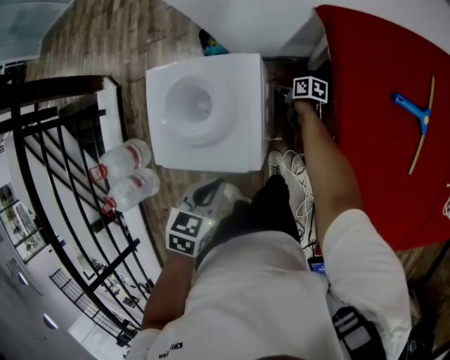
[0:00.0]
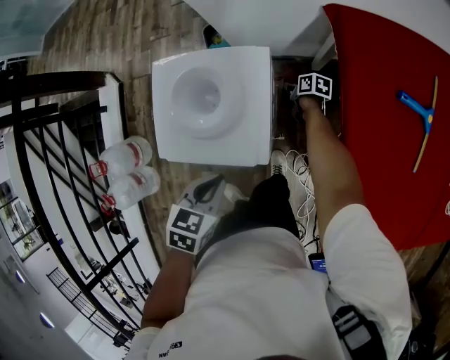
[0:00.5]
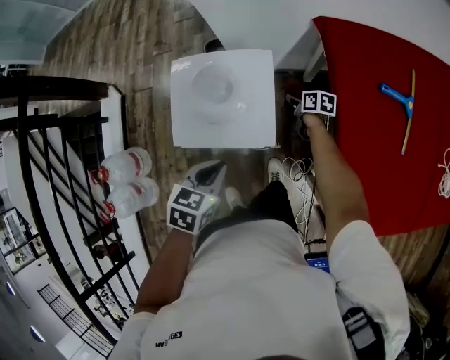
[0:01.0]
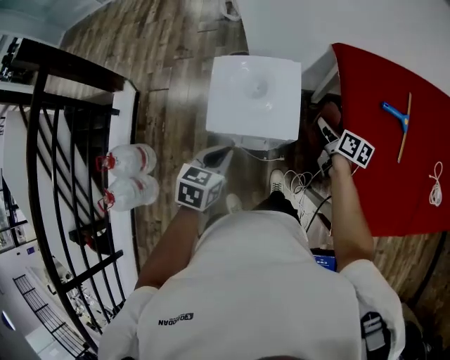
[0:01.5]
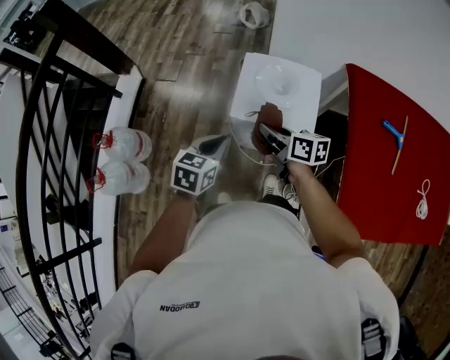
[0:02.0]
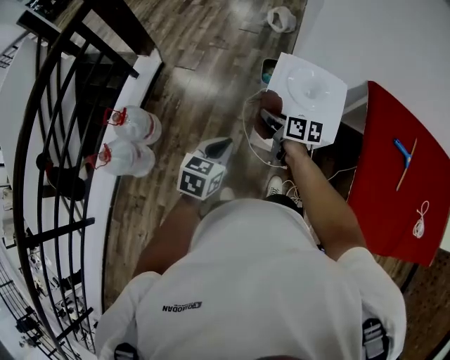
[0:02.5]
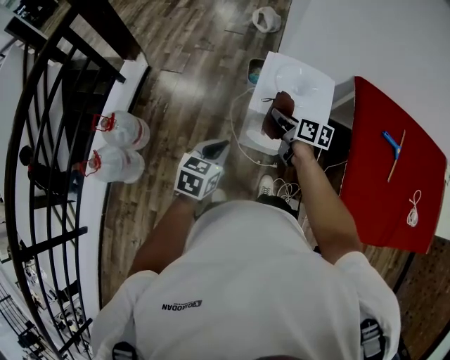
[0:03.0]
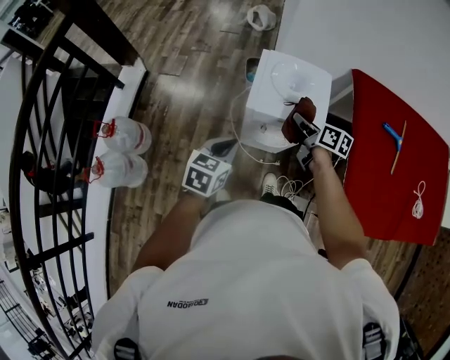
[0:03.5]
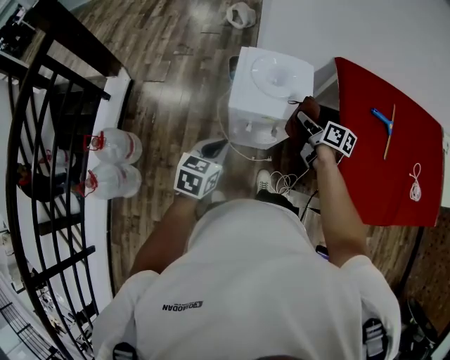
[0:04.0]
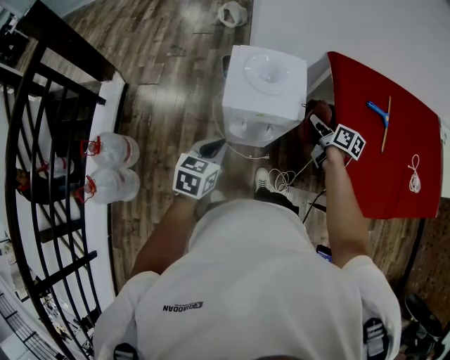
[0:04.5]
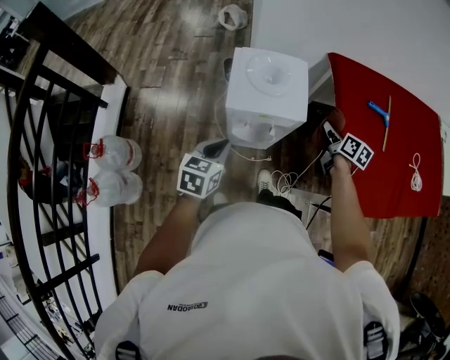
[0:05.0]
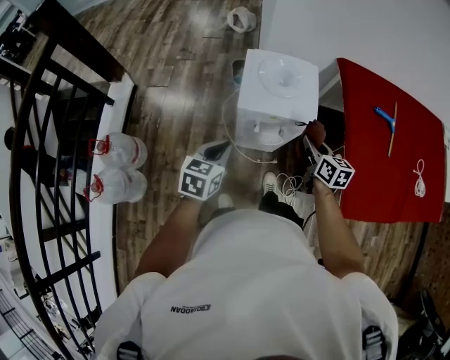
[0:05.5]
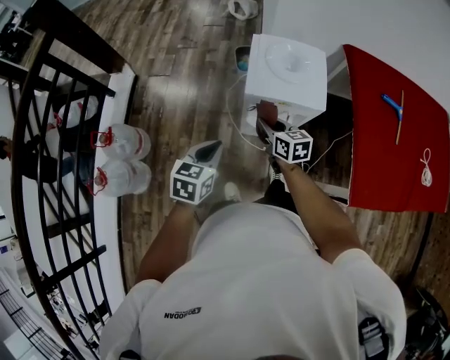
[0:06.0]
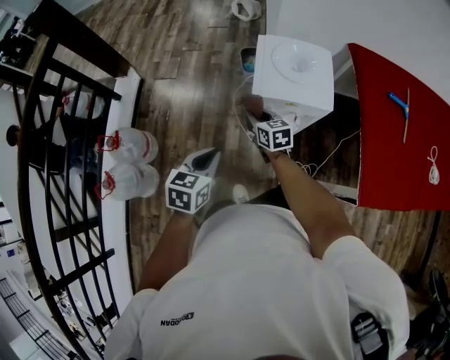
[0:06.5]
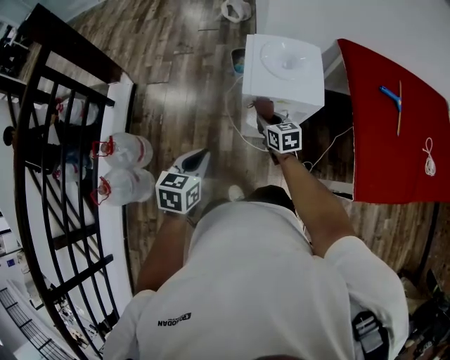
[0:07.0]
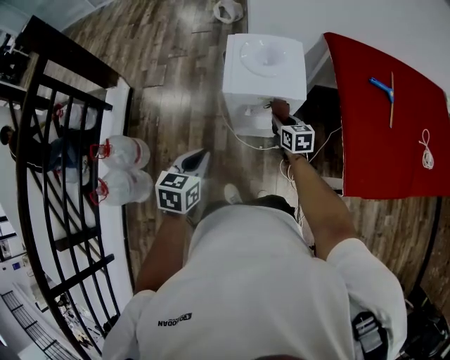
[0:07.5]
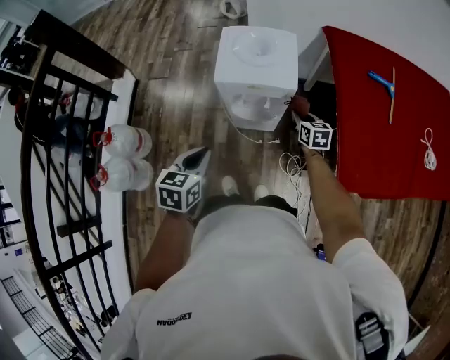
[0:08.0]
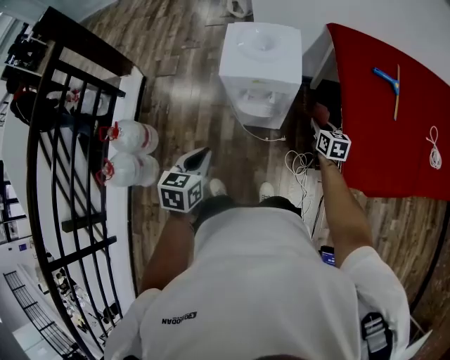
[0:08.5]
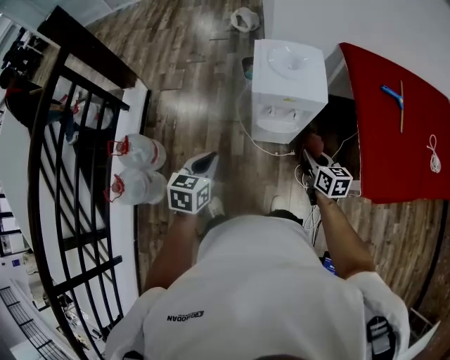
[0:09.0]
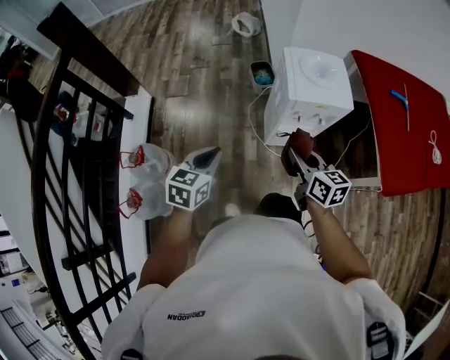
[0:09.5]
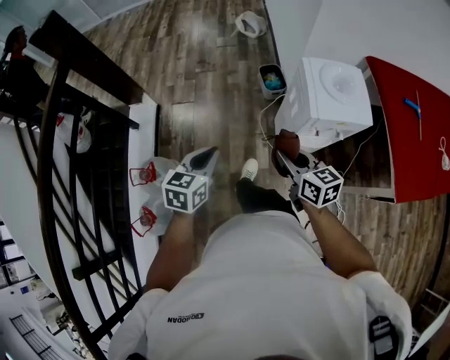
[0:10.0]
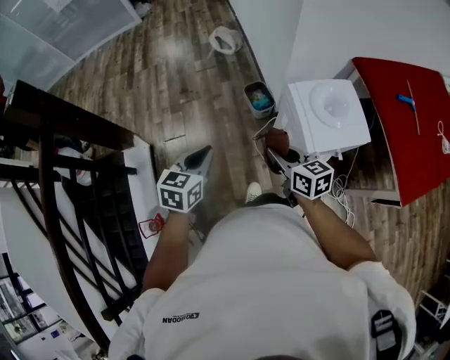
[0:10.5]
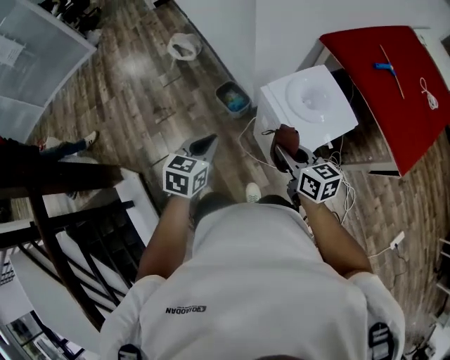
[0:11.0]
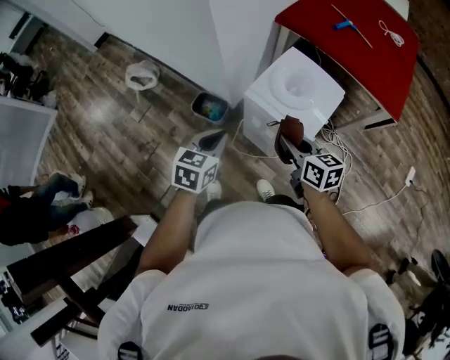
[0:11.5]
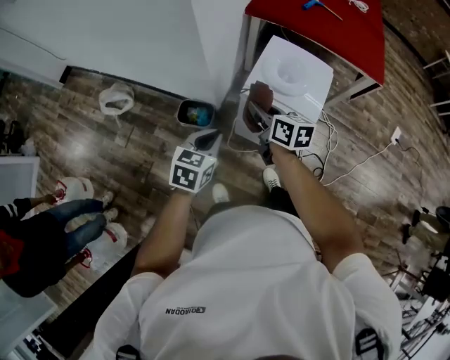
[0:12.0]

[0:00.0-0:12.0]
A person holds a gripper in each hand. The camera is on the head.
0:00.0 to 0:02.0: The right gripper shifts approximately 50 cm upward, to the left and backward, and turns by roughly 30 degrees. Meanwhile the left gripper shifts approximately 20 cm to the left and upward, and changes its angle by approximately 20 degrees.
0:02.0 to 0:04.0: The right gripper goes about 15 cm to the right, and swivels some 20 degrees.
0:04.0 to 0:06.0: The left gripper travels to the left by some 5 cm. Meanwhile the right gripper is displaced to the left and backward by roughly 20 cm, and changes its angle by approximately 30 degrees.
0:06.0 to 0:08.0: The right gripper goes roughly 25 cm to the right; the left gripper is displaced backward and to the right by roughly 10 cm.
0:08.0 to 0:10.0: Both grippers travel together to the left, roughly 40 cm.
0:10.0 to 0:12.0: The right gripper shifts by about 35 cm, and rotates about 70 degrees, while the left gripper moves about 40 cm, and changes its angle by roughly 70 degrees.

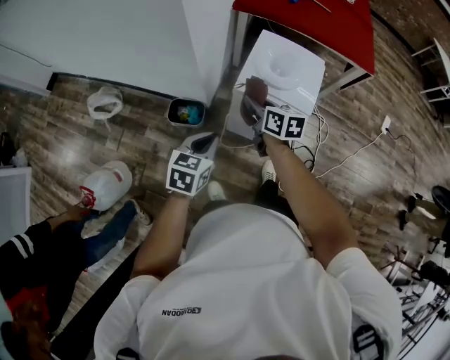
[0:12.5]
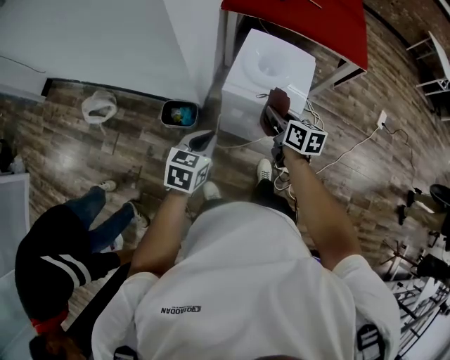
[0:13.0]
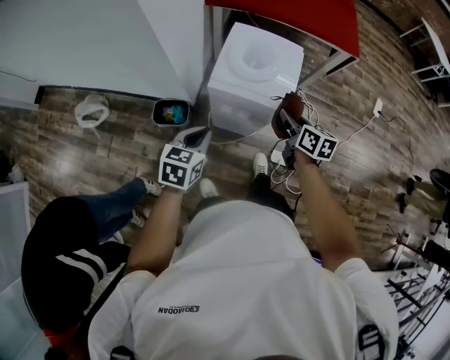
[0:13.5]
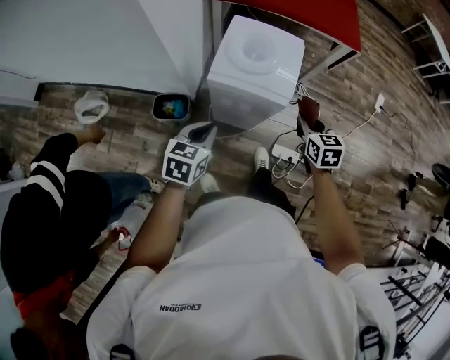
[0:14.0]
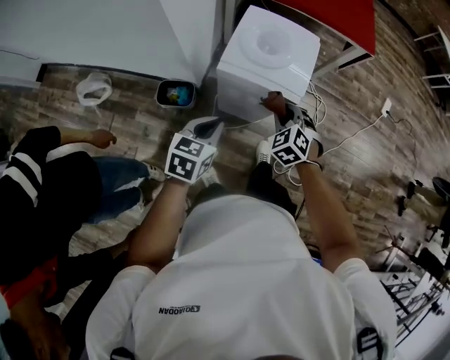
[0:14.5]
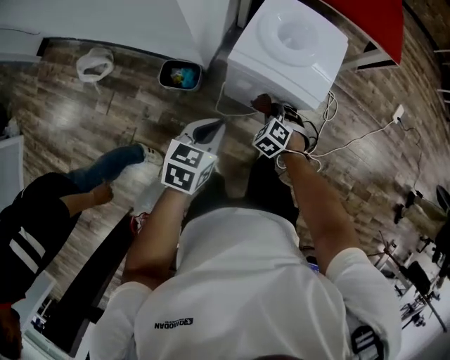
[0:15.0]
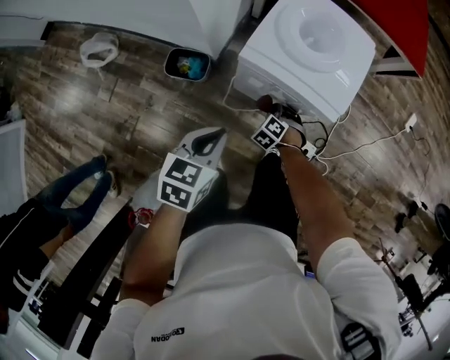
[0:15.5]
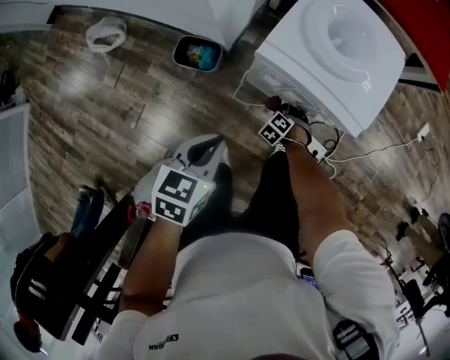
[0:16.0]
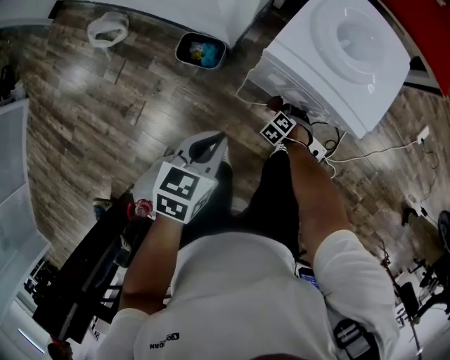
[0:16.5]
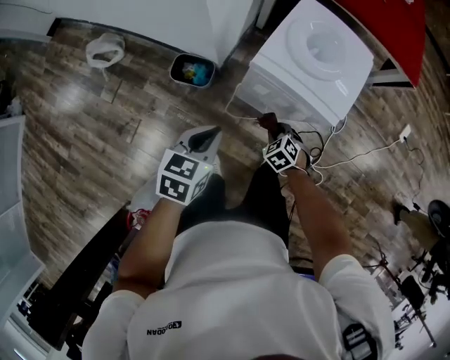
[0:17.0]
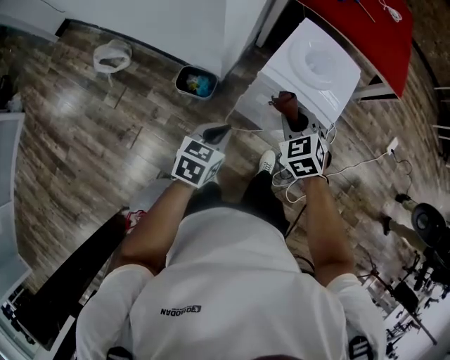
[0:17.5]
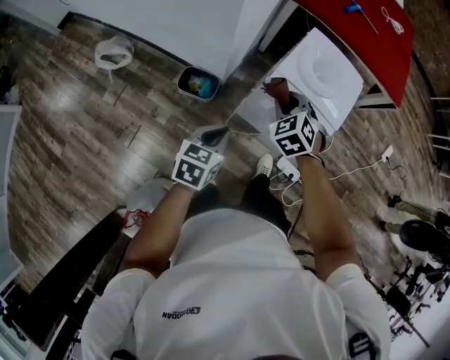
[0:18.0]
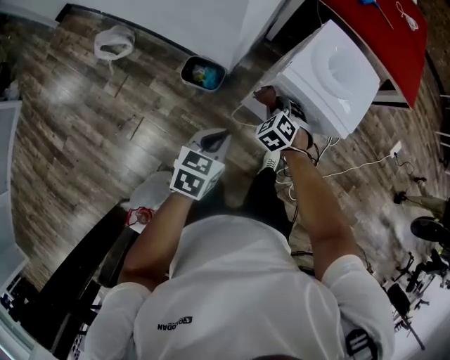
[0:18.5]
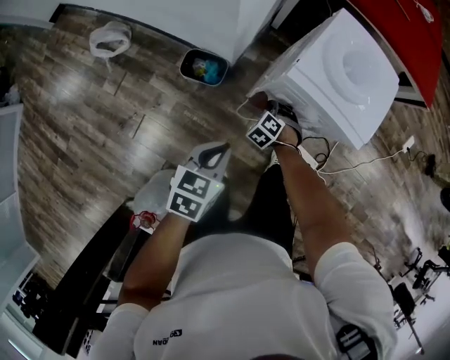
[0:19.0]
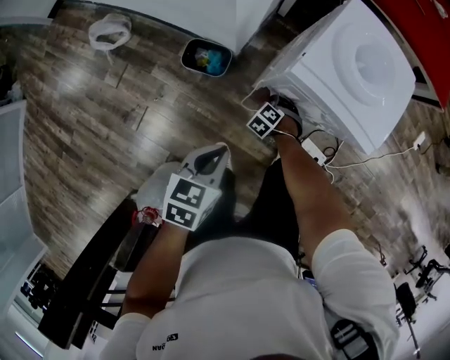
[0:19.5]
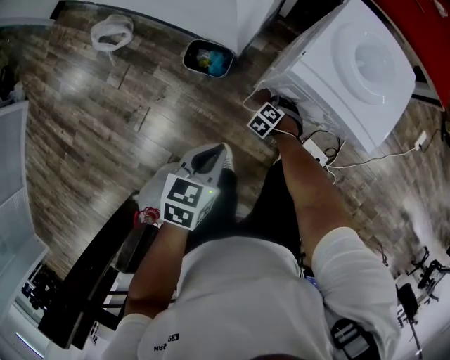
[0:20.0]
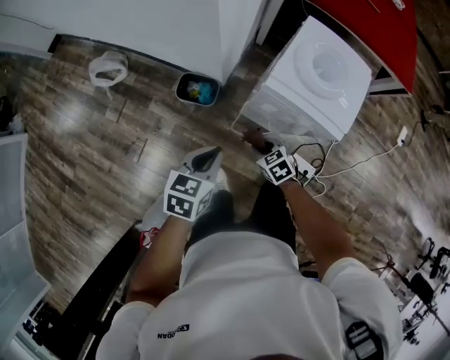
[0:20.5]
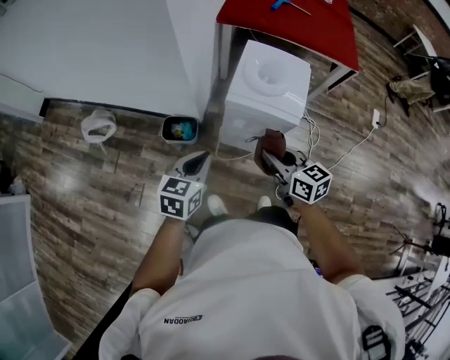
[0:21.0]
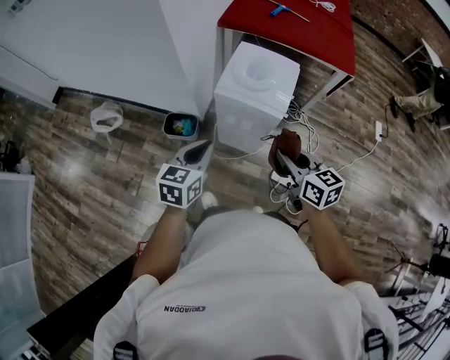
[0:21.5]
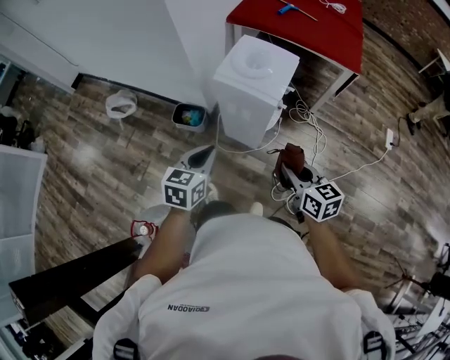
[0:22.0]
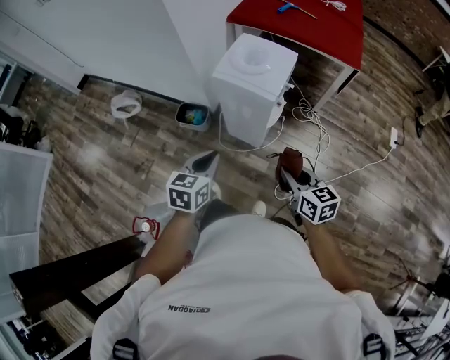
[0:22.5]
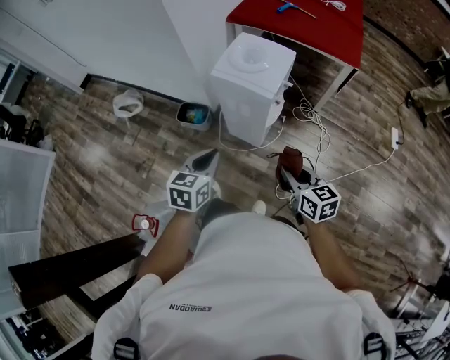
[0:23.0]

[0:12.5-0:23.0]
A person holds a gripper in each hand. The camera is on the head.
0:12.5 to 0:14.5: The left gripper heads to the right, covering some 5 cm; the right gripper shifts about 15 cm to the right, and rolls counterclockwise, seen from behind, by roughly 60 degrees.
0:14.5 to 0:16.5: The left gripper is displaced downward by approximately 5 cm, while the right gripper shifts about 35 cm downward, and changes its angle by approximately 30 degrees.
0:16.5 to 0:19.0: The right gripper travels upward and back again, approximately 40 cm each way.
0:19.0 to 0:21.0: The right gripper goes roughly 35 cm upward, and points its fingers some 50 degrees further upward. The left gripper is displaced upward by about 10 cm.
0:21.0 to 0:23.0: The grippers both shift backward and to the right by about 25 cm.

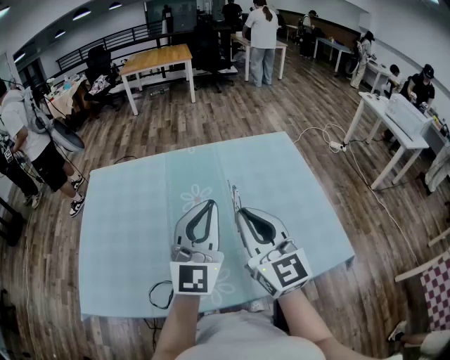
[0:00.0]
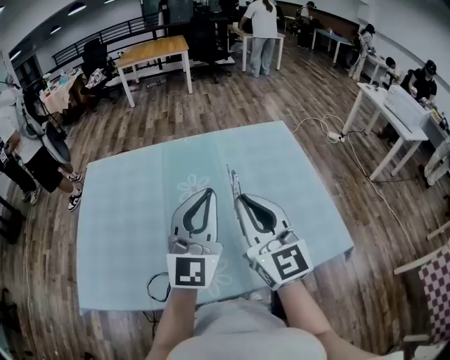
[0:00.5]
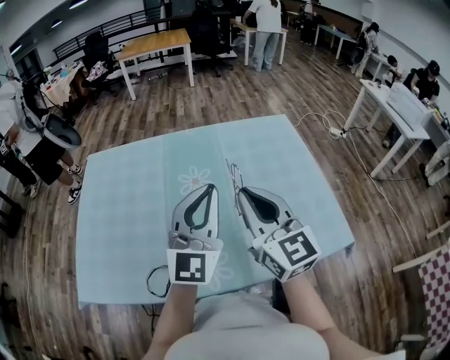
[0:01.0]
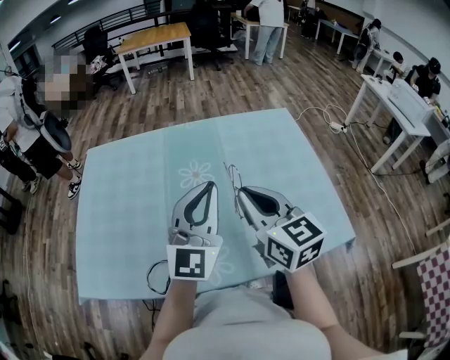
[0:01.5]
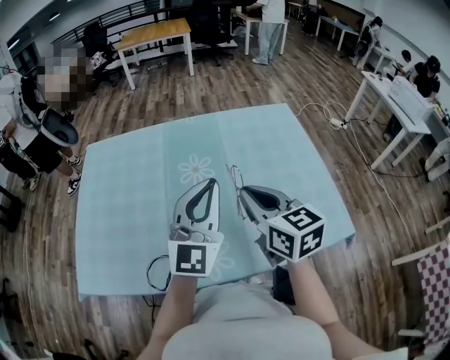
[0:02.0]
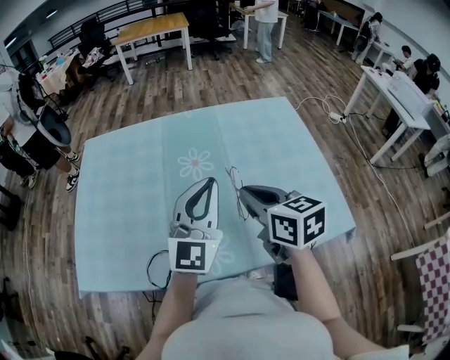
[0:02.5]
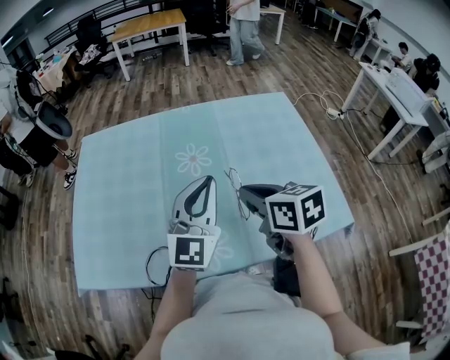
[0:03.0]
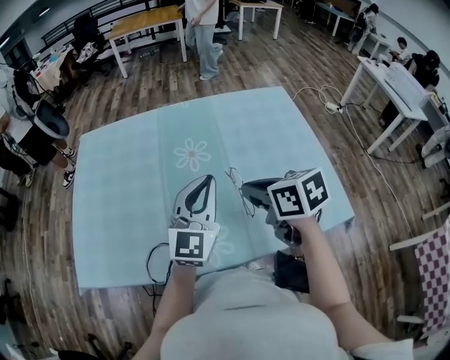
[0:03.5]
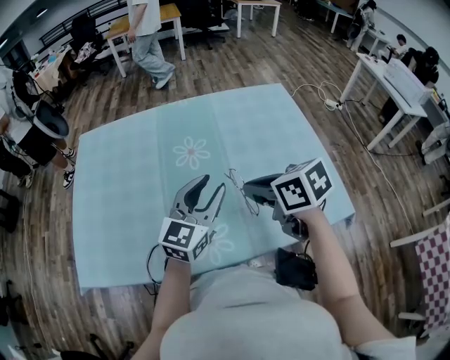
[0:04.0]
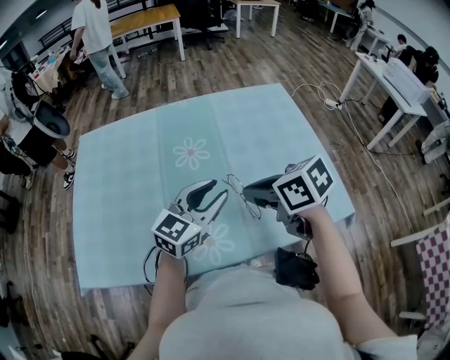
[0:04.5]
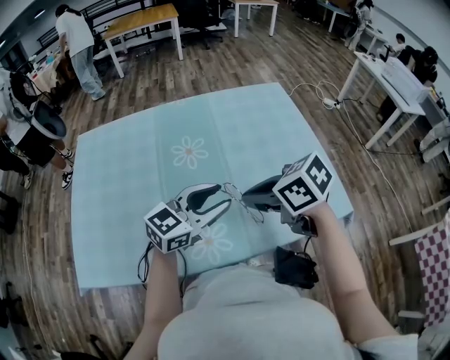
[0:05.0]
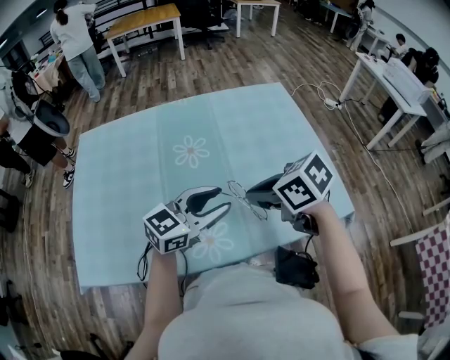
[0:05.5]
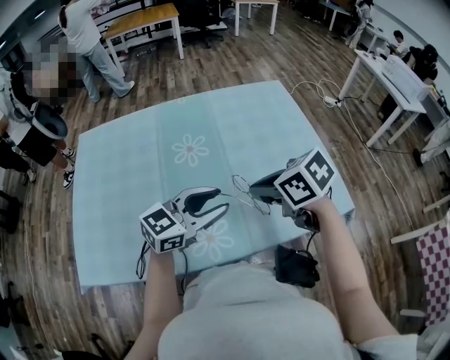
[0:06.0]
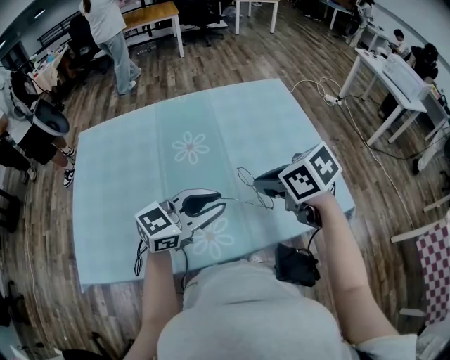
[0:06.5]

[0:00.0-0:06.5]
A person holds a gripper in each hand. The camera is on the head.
0:00.0 to 0:02.0: The right gripper heads downward, covering some 5 cm, and turns by about 30 degrees.
0:02.0 to 0:04.5: The right gripper goes roughly 5 cm downward, and swivels roughly 40 degrees. Meanwhile the left gripper heads downward, covering about 10 cm, turns by some 40 degrees, and opens up.
0:04.5 to 0:06.5: The left gripper moves approximately 5 cm, and rotates some 20 degrees.
